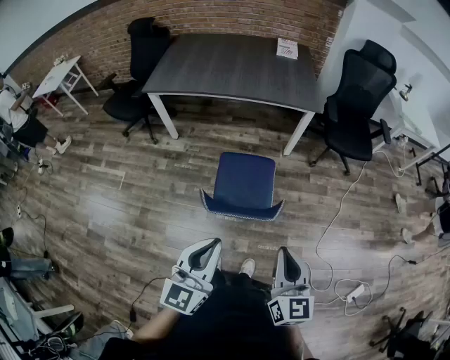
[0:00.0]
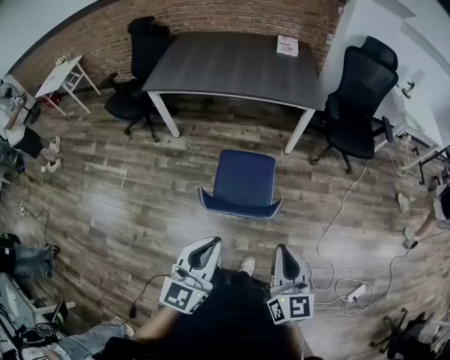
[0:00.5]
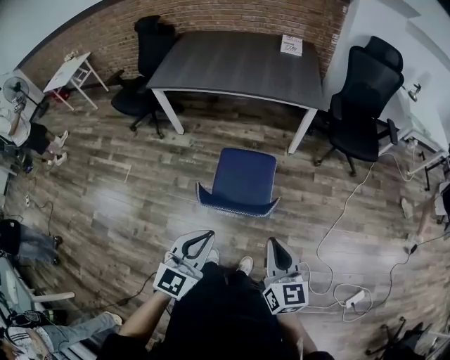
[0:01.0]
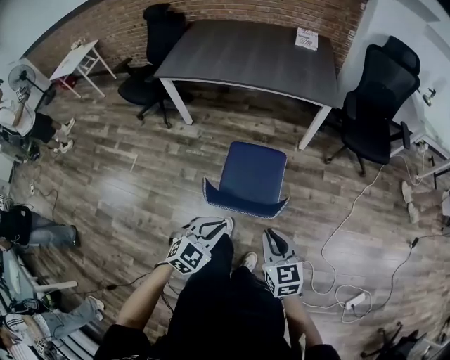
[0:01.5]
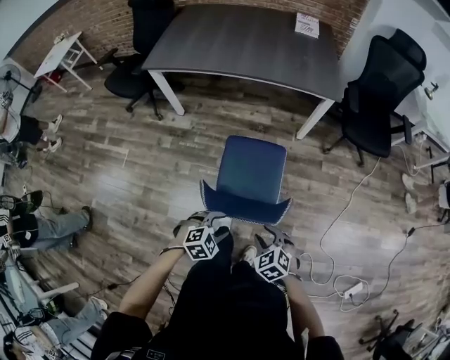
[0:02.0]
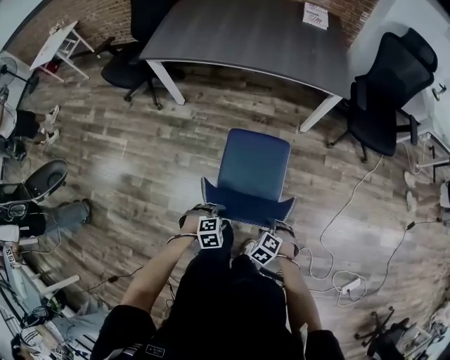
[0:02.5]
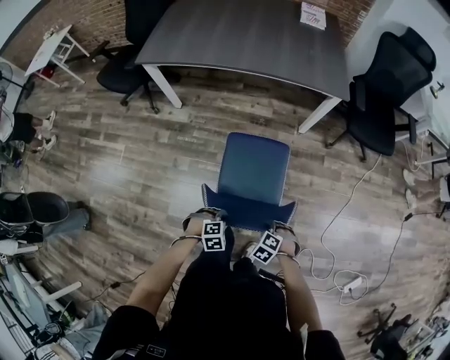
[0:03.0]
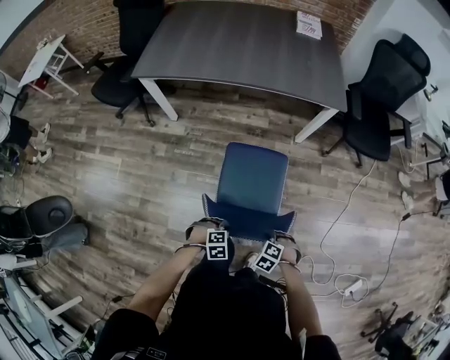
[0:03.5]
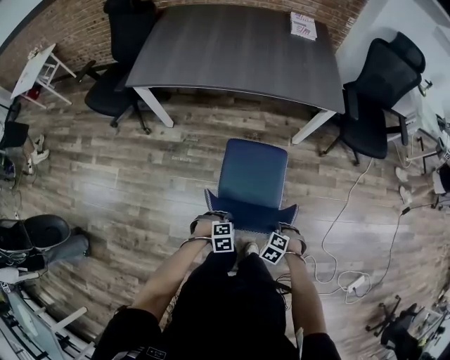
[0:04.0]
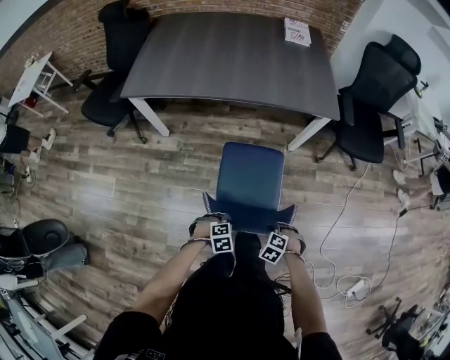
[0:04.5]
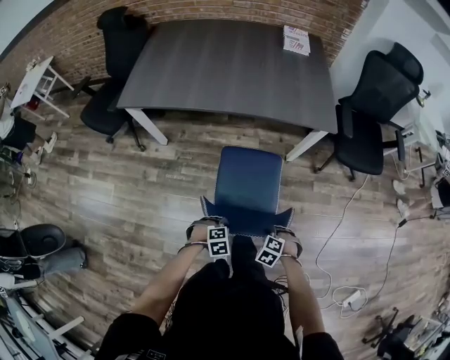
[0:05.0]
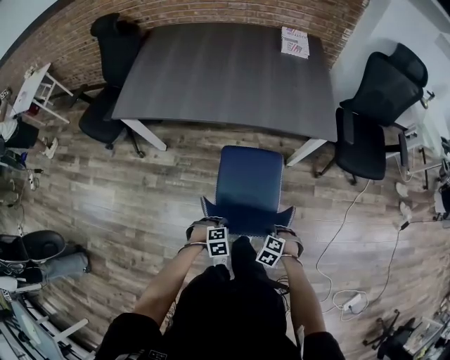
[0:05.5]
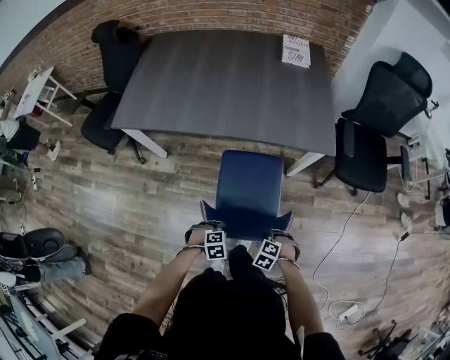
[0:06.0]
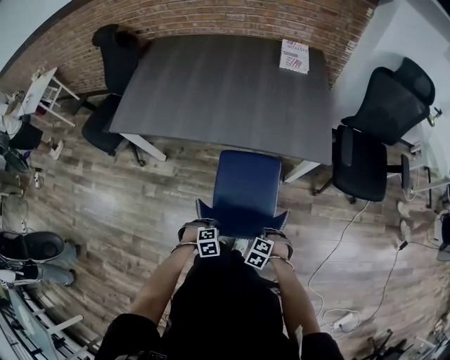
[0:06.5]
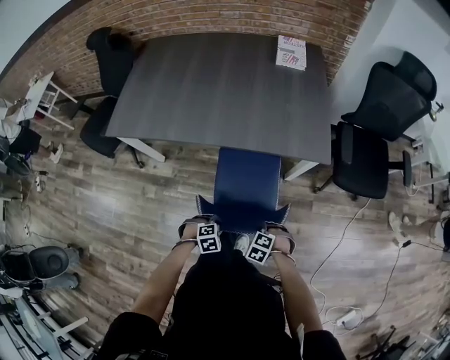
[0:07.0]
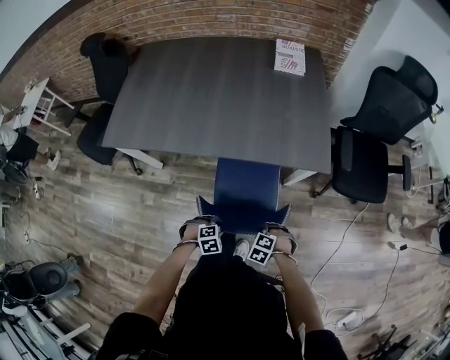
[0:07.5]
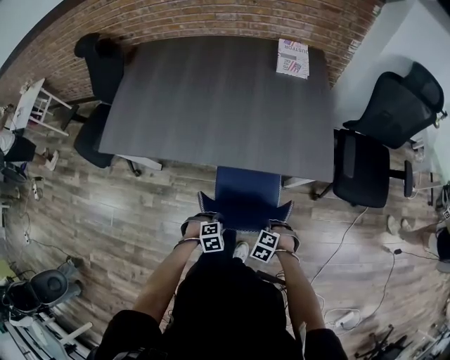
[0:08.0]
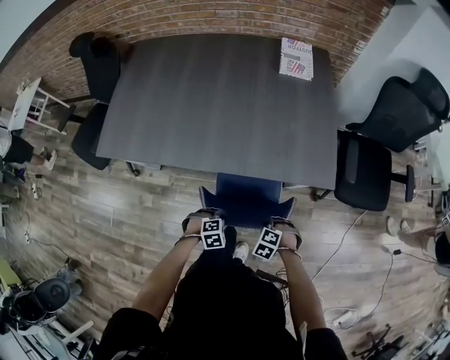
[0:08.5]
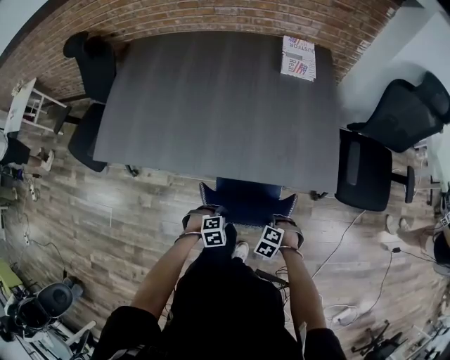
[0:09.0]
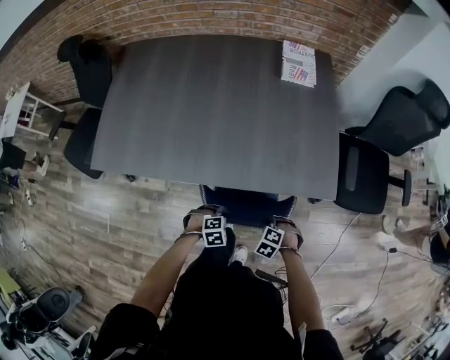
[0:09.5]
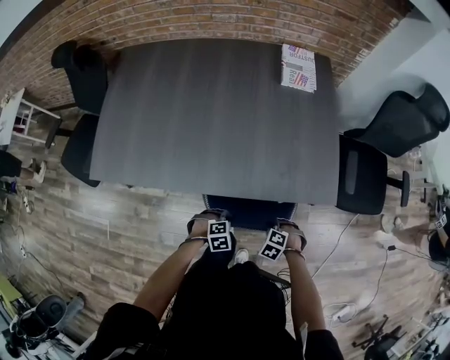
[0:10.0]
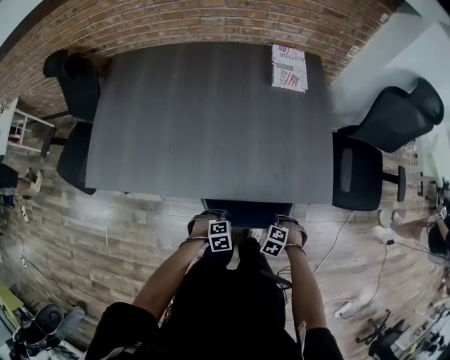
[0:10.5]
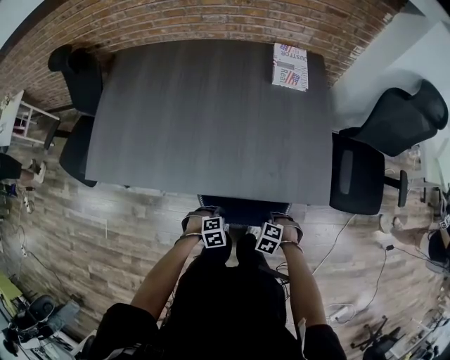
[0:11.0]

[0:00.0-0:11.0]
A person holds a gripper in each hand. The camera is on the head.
0:00.0 to 0:02.0: Both grippers move downward, some 30 cm. The right gripper tilts its fingers about 40 degrees downward, and opens its fingers. The left gripper tips its fingers downward by about 50 degrees, and opens its fingers.
0:02.0 to 0:03.5: The grippers both shift downward by about 10 cm. The left gripper swivels some 20 degrees, and closes up. Meanwhile the right gripper changes its angle by approximately 30 degrees.
0:03.5 to 0:05.5: The left gripper ends up some 20 cm from where it was. The right gripper moves about 20 cm.
0:05.5 to 0:07.5: The right gripper changes place by about 15 cm; the left gripper moves some 15 cm.
0:07.5 to 0:09.0: The right gripper ends up some 15 cm from where it was. Meanwhile the left gripper moves some 15 cm.
0:09.0 to 0:11.0: The right gripper changes place by some 5 cm. Meanwhile the left gripper moves roughly 5 cm.

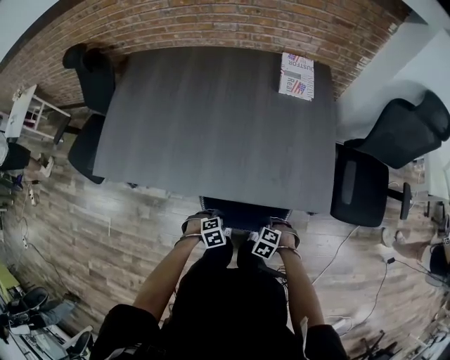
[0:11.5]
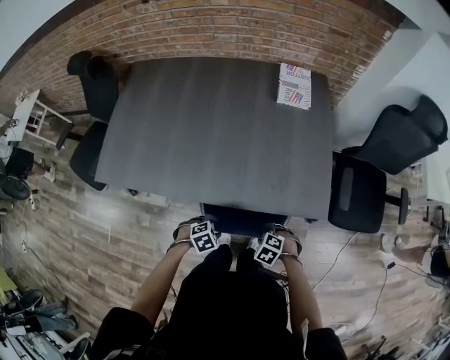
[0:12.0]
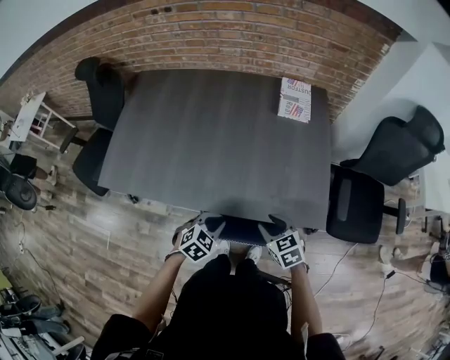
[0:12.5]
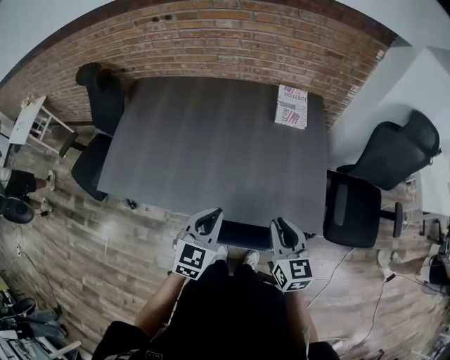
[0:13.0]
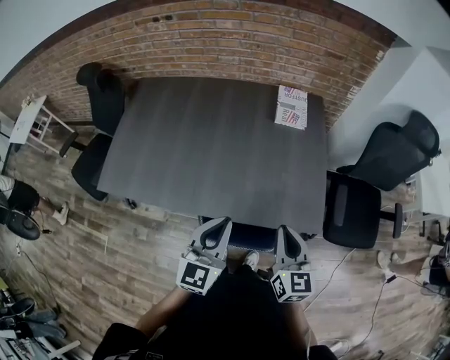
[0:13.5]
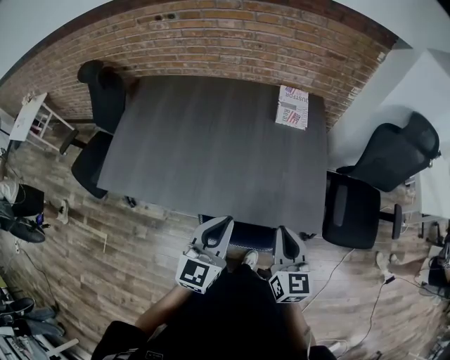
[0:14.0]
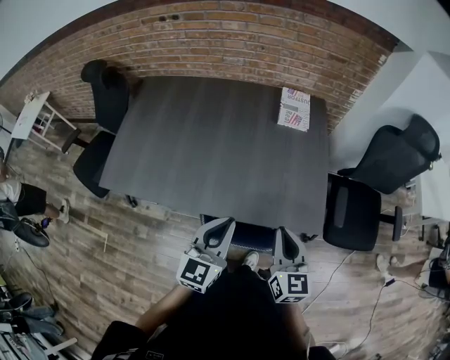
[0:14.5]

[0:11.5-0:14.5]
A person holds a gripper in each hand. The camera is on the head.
0:11.5 to 0:13.0: Both grippers move upward, approximately 30 cm. The left gripper points its fingers approximately 50 degrees further upward, and closes up; the right gripper tilts its fingers roughly 60 degrees upward, and closes.
0:13.0 to 0:14.5: The left gripper shifts by some 5 cm.

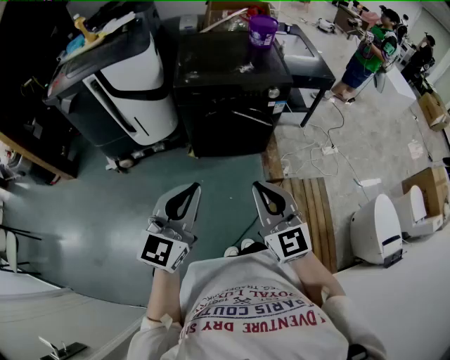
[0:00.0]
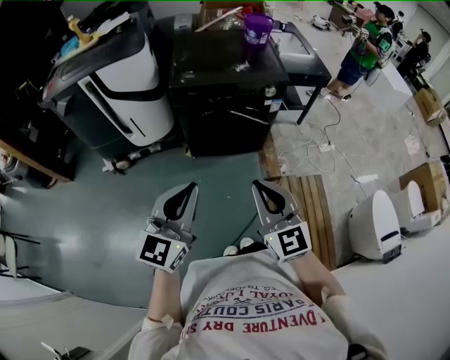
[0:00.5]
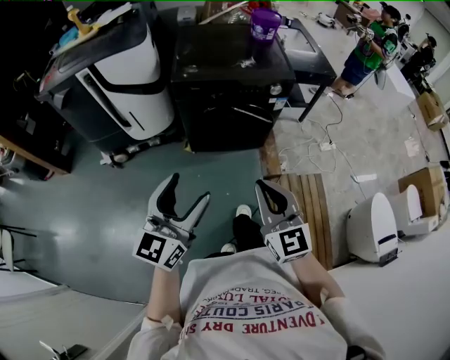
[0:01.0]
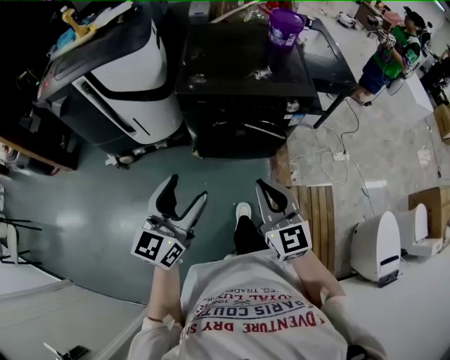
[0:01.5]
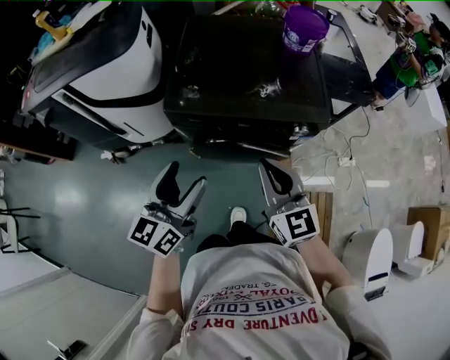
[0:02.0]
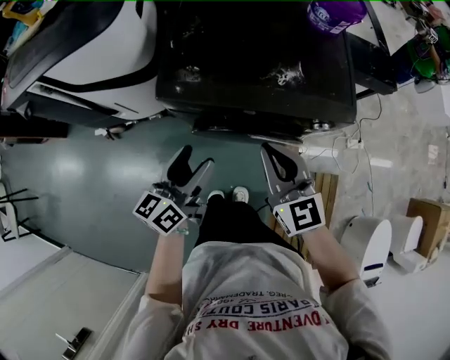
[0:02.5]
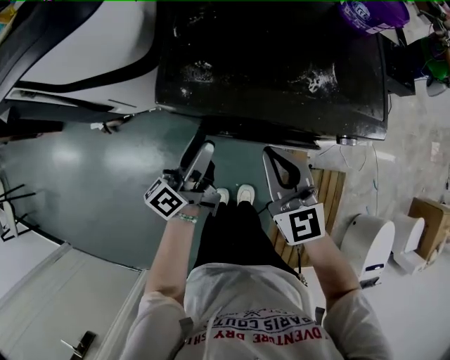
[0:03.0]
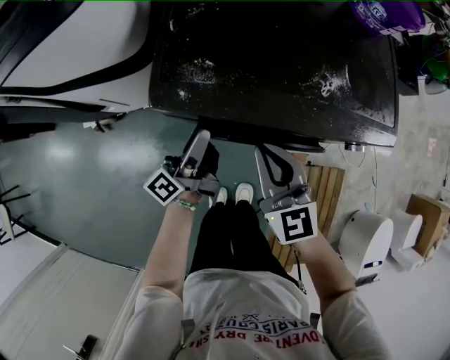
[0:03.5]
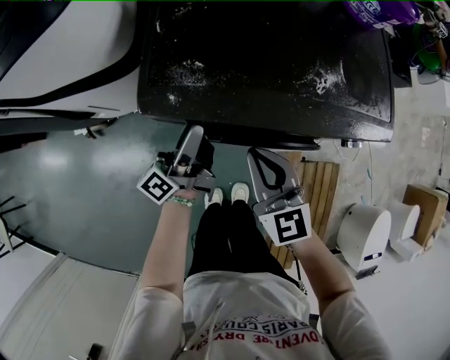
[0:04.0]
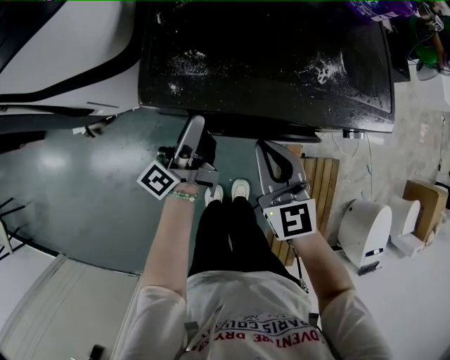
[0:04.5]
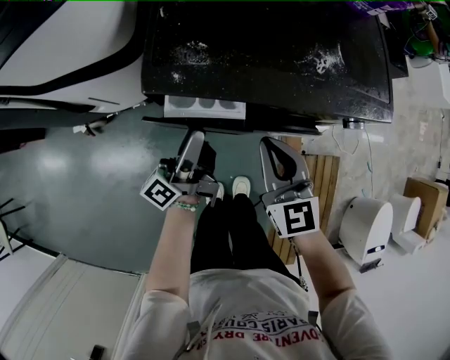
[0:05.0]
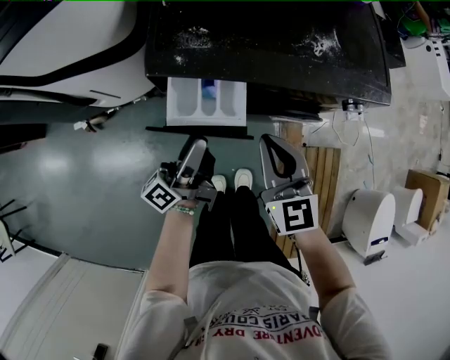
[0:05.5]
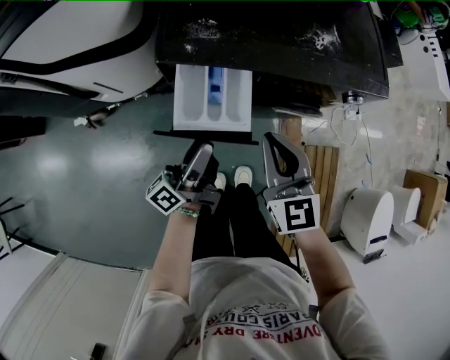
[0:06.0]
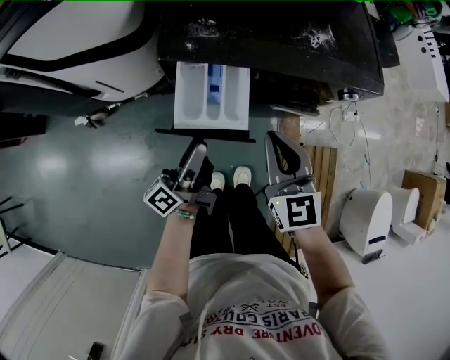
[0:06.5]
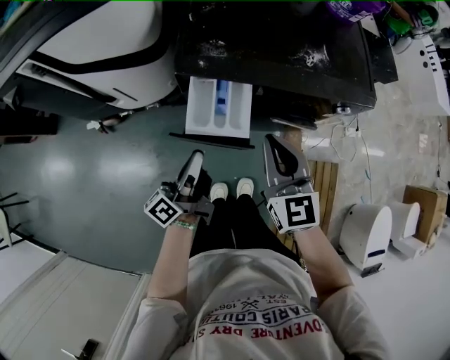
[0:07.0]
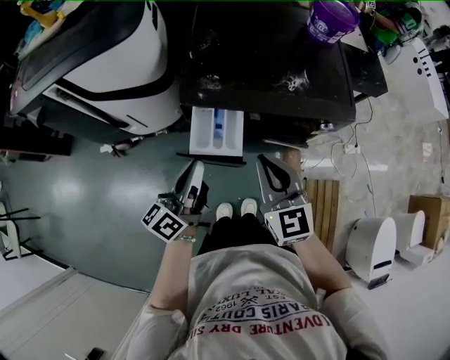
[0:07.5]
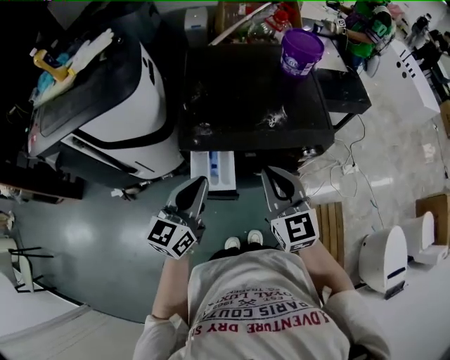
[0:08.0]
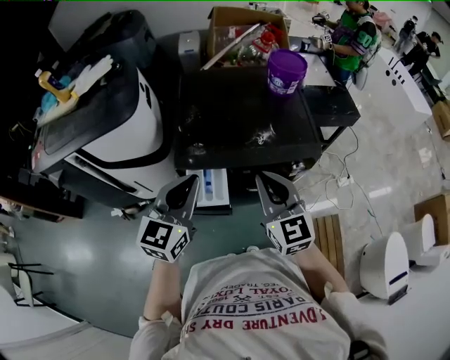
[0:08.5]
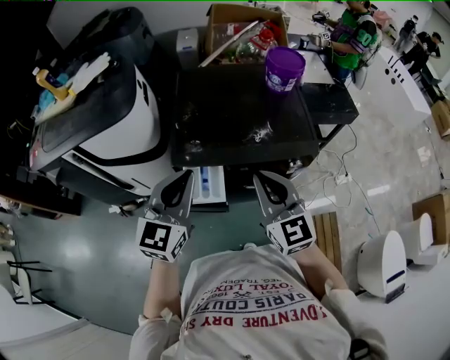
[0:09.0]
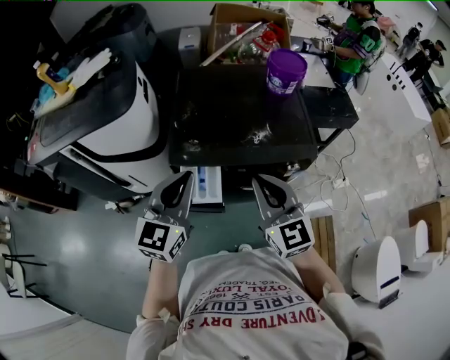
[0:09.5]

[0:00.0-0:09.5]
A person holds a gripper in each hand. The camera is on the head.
0:00.0 to 0:02.0: The grippers both shift forward by some 35 cm. The left gripper rotates approximately 30 degrees, and opens.
0:02.0 to 0:04.0: The left gripper travels downward and forward by roughly 30 cm, and rotates around the line of its fingers by some 50 degrees, counterclockwise from behind. Meanwhile the right gripper is displaced downward, forward and to the left by some 25 cm.
0:04.0 to 0:05.5: The left gripper moves backward, about 10 cm. Meanwhile the right gripper travels backward by about 5 cm.
0:05.5 to 0:07.5: The two grippers go some 15 cm upward. The left gripper rotates some 30 degrees, and closes its fingers.
0:07.5 to 0:09.5: The left gripper heads upward, covering approximately 15 cm, and rotates around the line of its fingers by some 50 degrees, clockwise from behind. The right gripper travels upward and to the right by roughly 15 cm.

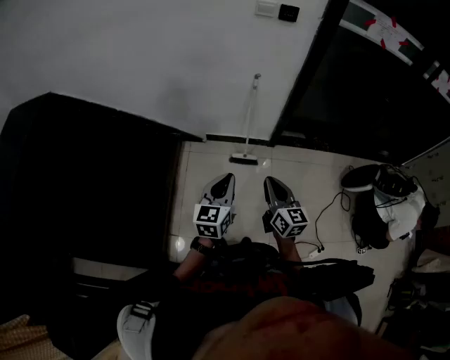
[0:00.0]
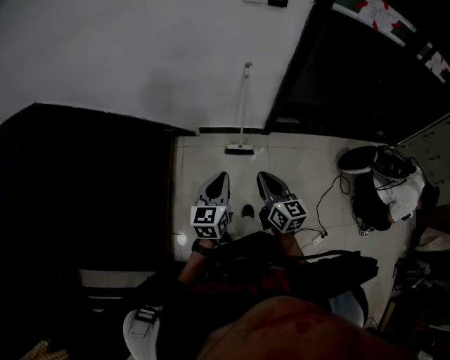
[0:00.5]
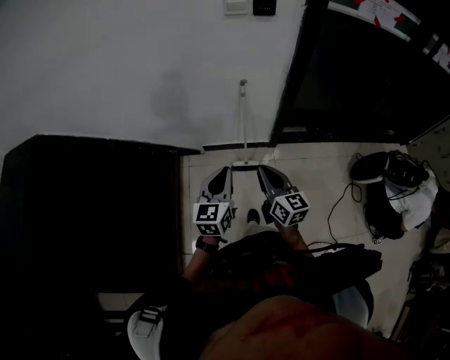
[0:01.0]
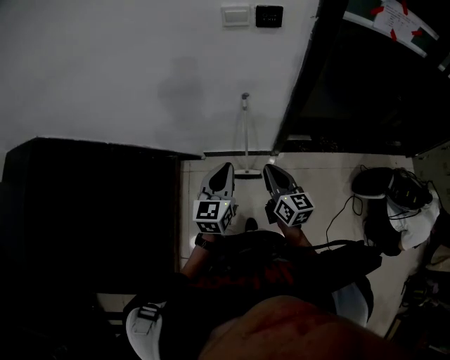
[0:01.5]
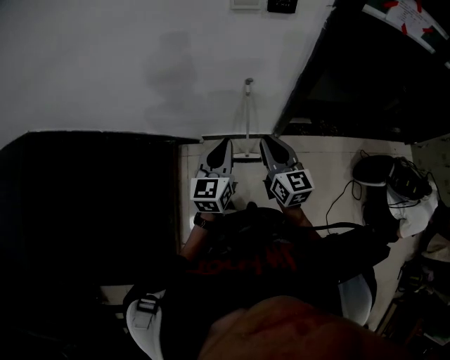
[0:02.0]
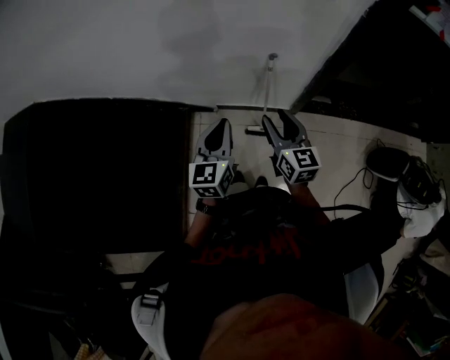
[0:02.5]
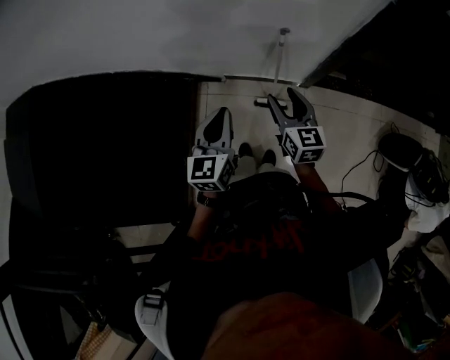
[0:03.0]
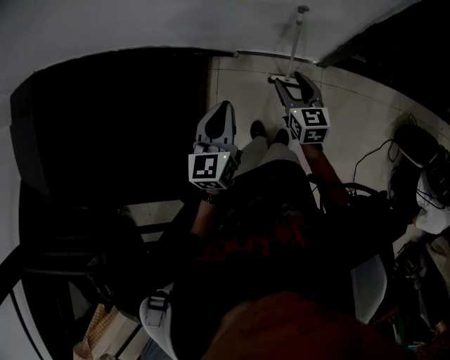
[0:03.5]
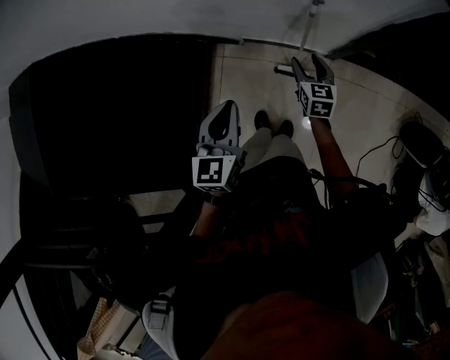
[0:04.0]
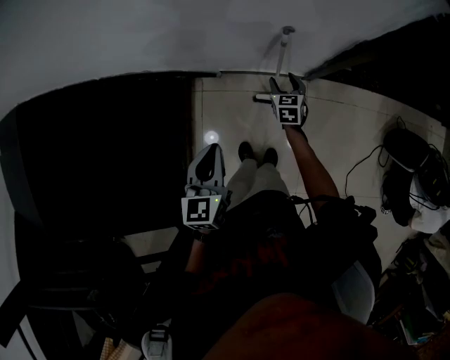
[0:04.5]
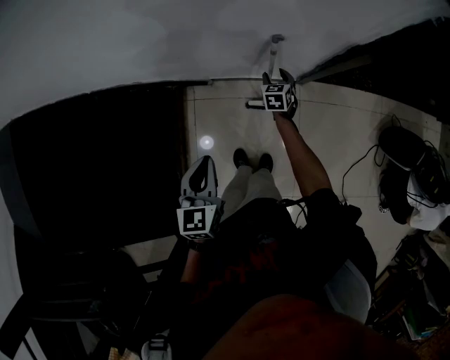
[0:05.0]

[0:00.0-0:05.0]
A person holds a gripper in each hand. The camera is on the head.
0:00.0 to 0:02.5: The grippers both shift forward by some 40 cm. The right gripper opens.
0:02.5 to 0:05.0: The left gripper heads downward, covering some 15 cm, while the right gripper moves downward and forward, about 50 cm, and points its fingers approximately 30 degrees further downward.
